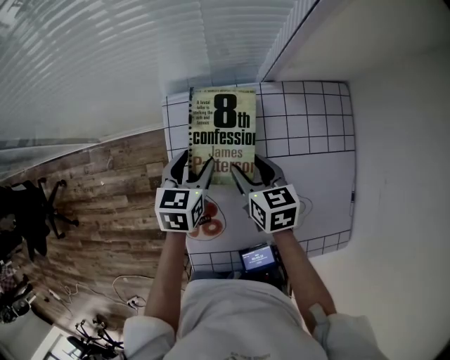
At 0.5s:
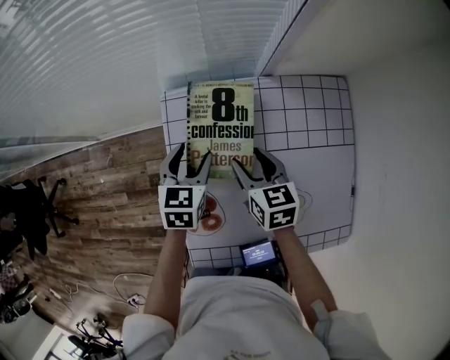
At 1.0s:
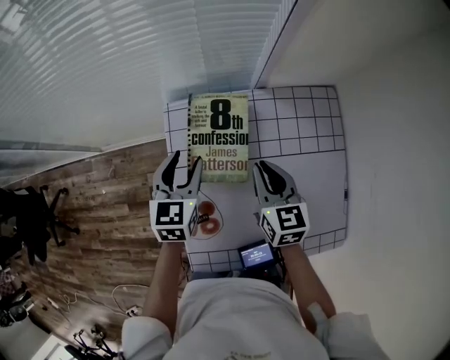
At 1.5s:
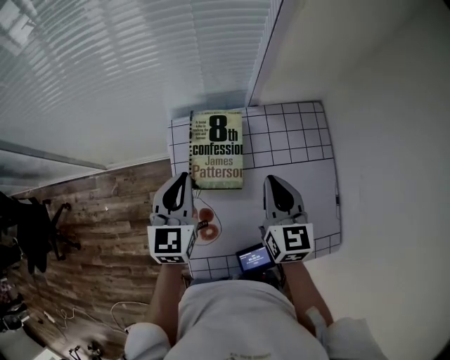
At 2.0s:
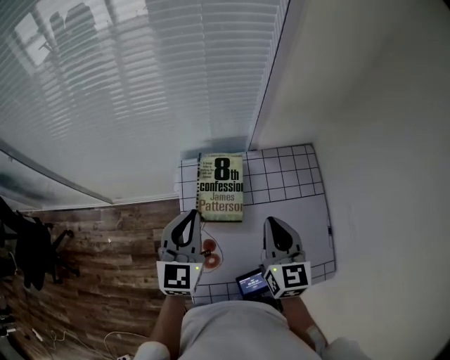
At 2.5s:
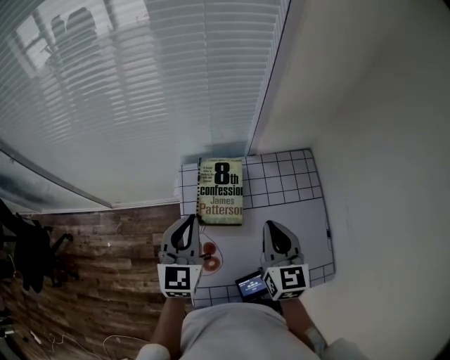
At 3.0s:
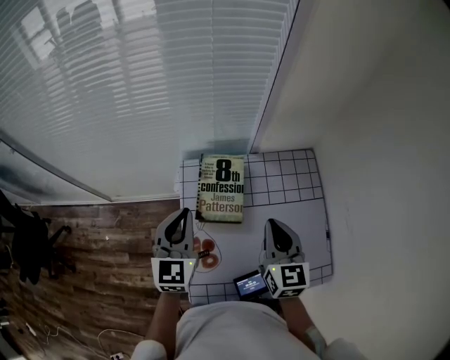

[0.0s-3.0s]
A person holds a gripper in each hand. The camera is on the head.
0.0s to 1.5s: The left gripper travels upward by about 15 cm, rotates about 30 degrees, and closes, while the right gripper shifts approximately 15 cm upward and to the right, swivels some 30 degrees, and closes up.
1.5s to 3.0s: Both grippers move upward, some 5 cm.

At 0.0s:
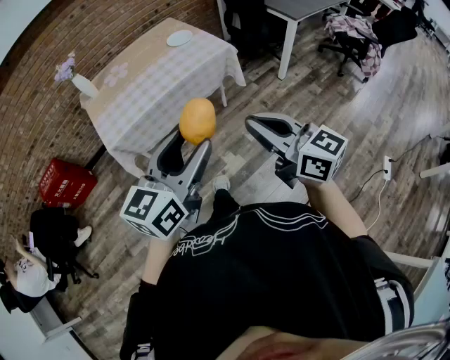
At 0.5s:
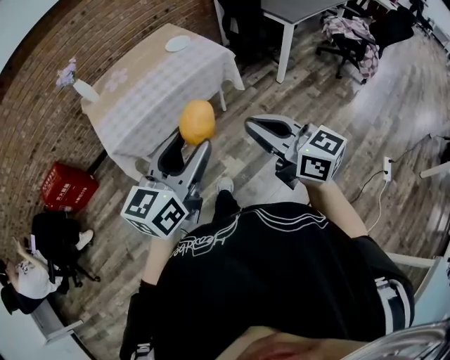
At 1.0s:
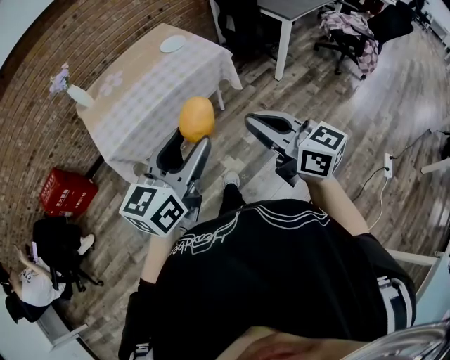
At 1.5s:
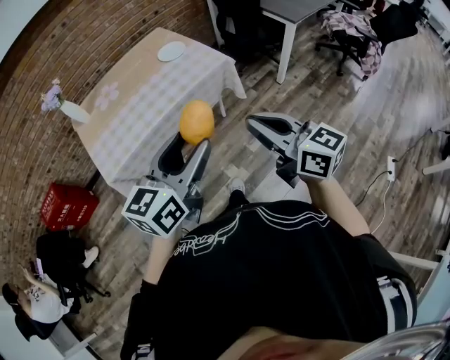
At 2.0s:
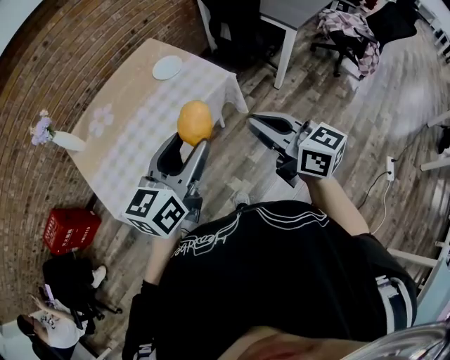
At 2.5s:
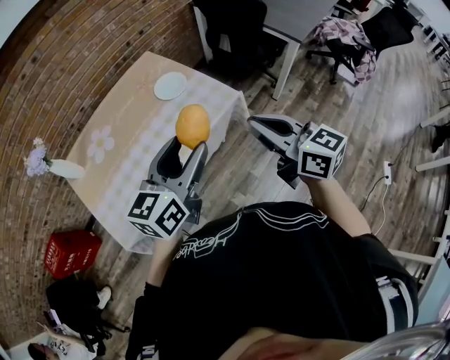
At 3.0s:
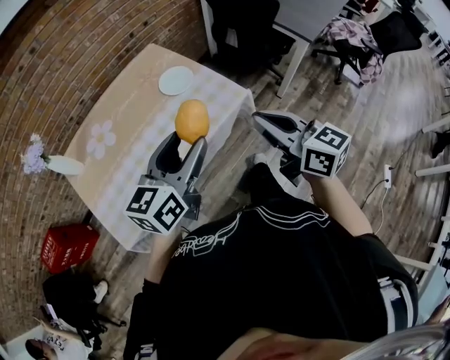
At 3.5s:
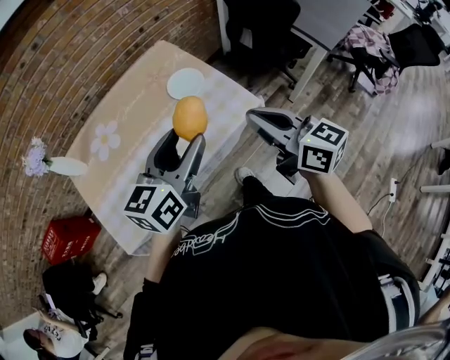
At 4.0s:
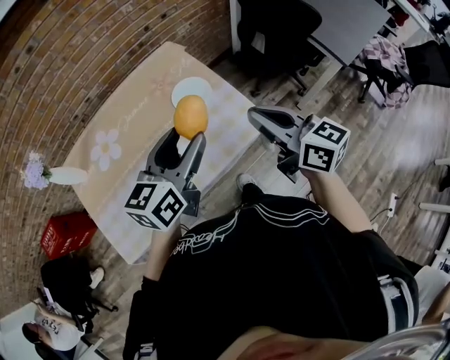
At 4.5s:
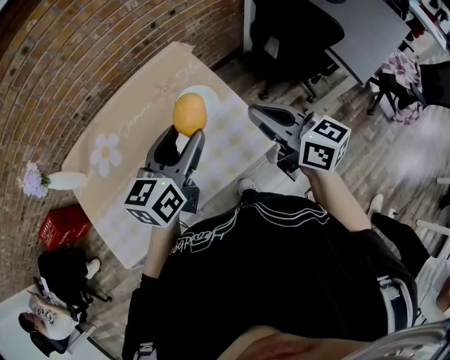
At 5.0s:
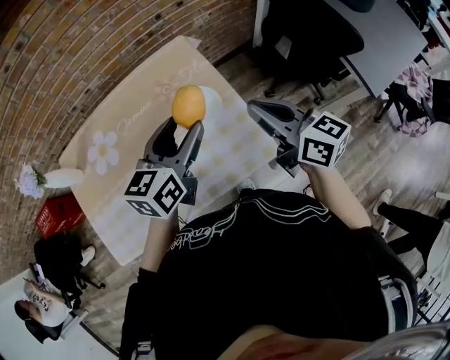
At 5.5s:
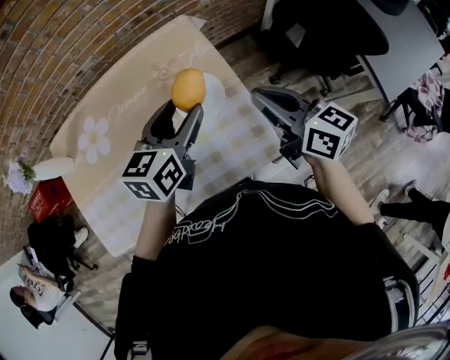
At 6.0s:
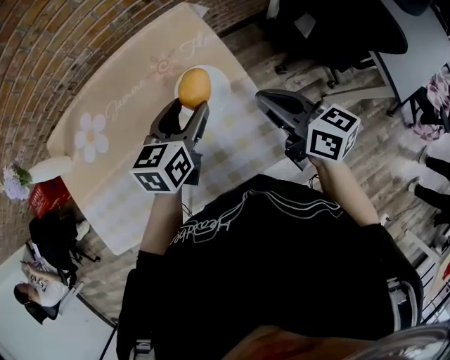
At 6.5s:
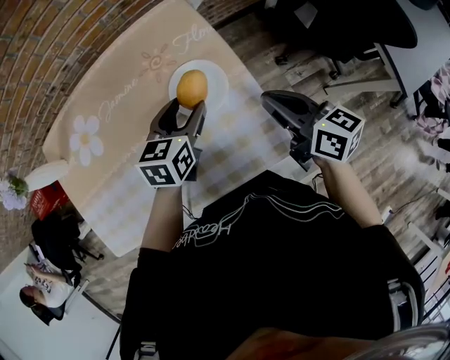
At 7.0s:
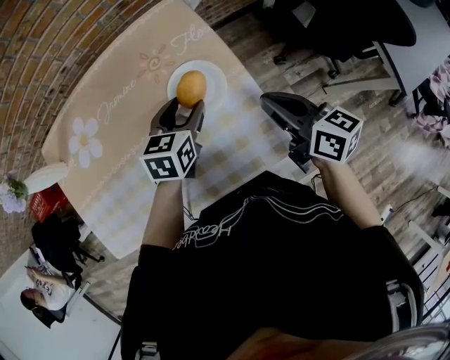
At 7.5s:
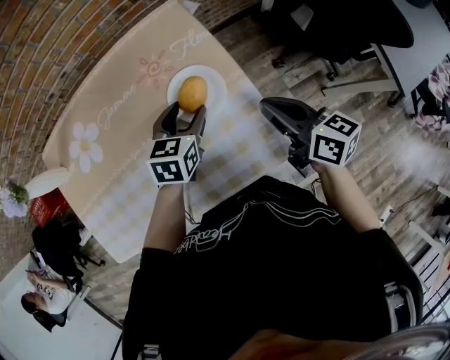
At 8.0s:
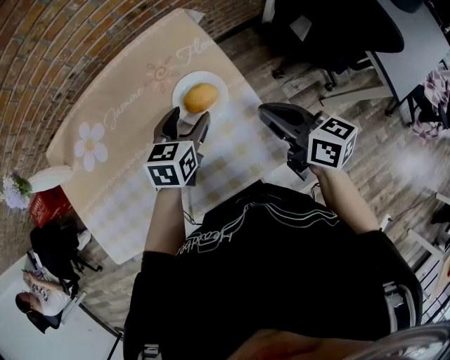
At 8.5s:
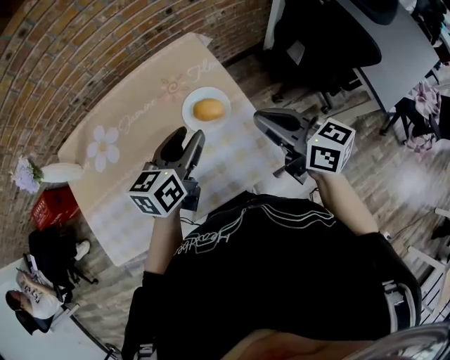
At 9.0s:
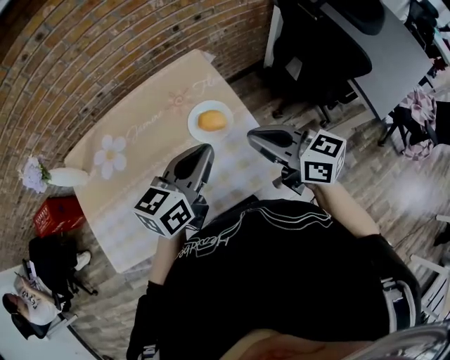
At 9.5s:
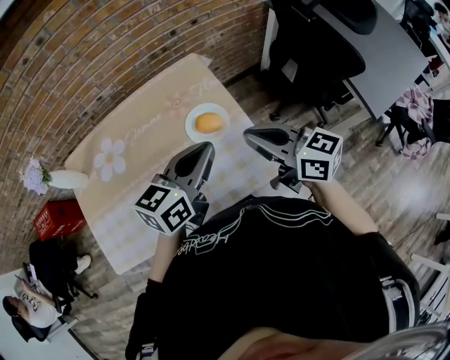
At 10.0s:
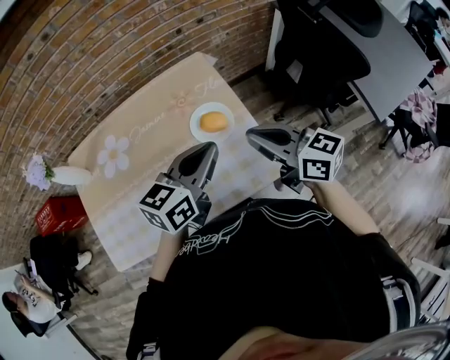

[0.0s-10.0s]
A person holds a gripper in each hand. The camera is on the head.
0.0s to 2.0s: The two grippers go some 25 cm forward.
2.0s to 4.0s: Both grippers travel together forward, roughly 30 cm.
4.0s to 6.0s: The two grippers go approximately 25 cm forward and downward. The left gripper changes its angle by about 20 degrees.
6.0s to 8.0s: The left gripper shifts roughly 5 cm downward.
8.0s to 10.0s: The left gripper is displaced upward and backward by approximately 20 cm, changes its angle by roughly 30 degrees, and closes up, while the right gripper travels upward by some 10 cm.

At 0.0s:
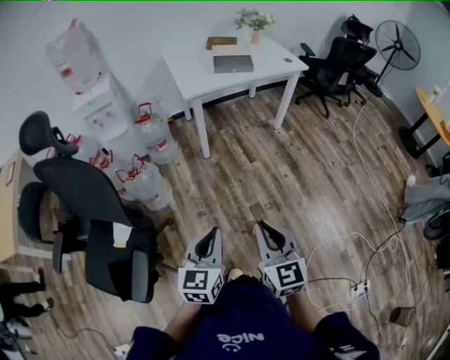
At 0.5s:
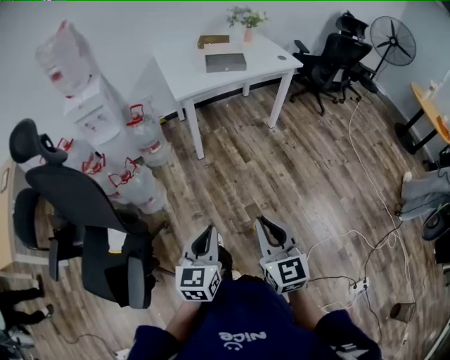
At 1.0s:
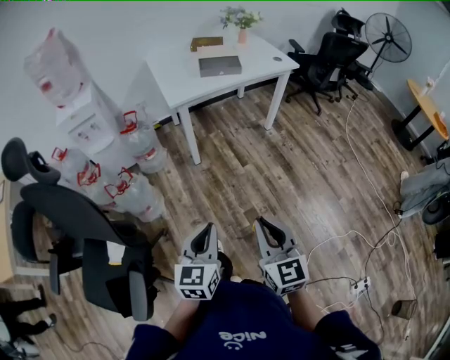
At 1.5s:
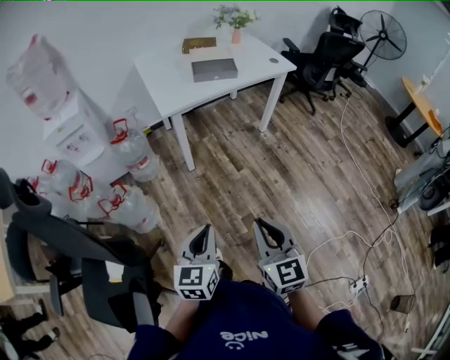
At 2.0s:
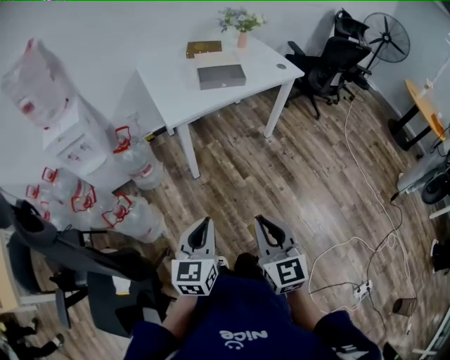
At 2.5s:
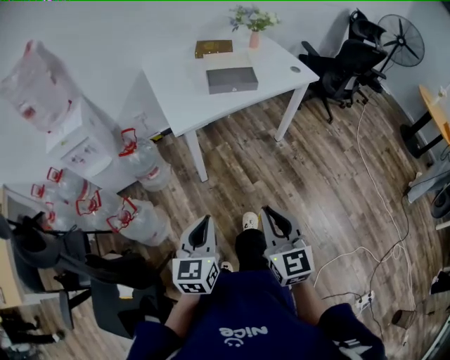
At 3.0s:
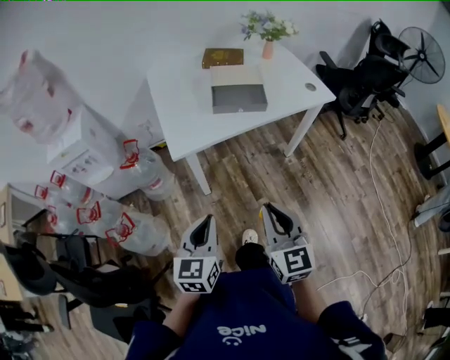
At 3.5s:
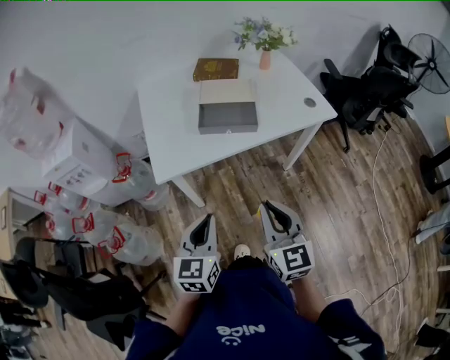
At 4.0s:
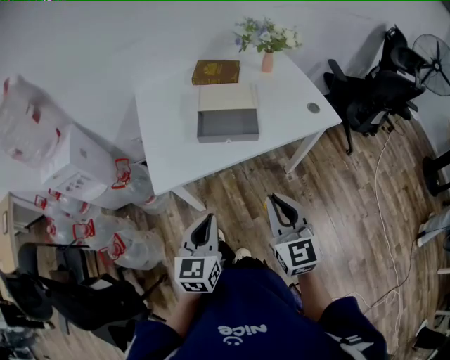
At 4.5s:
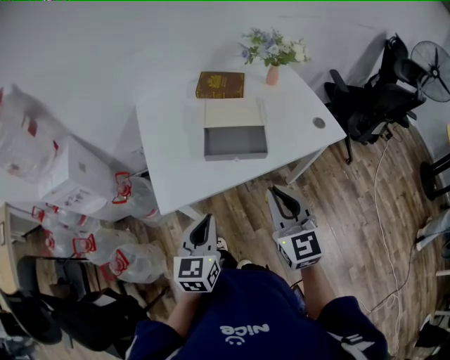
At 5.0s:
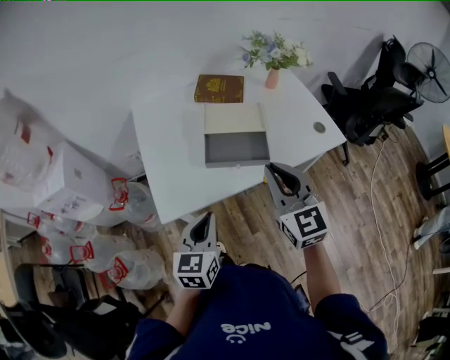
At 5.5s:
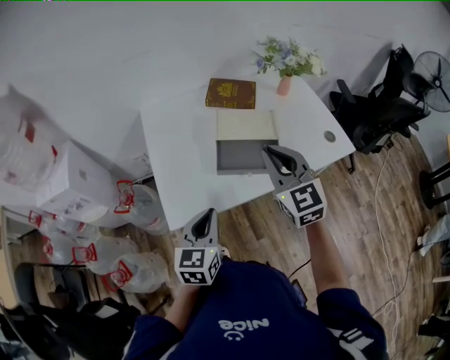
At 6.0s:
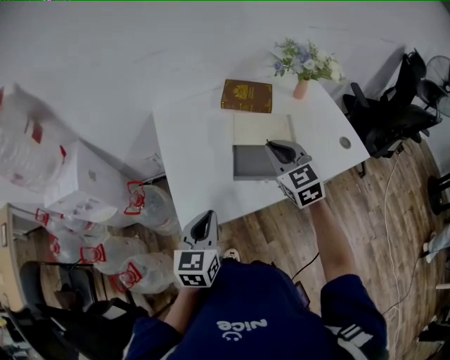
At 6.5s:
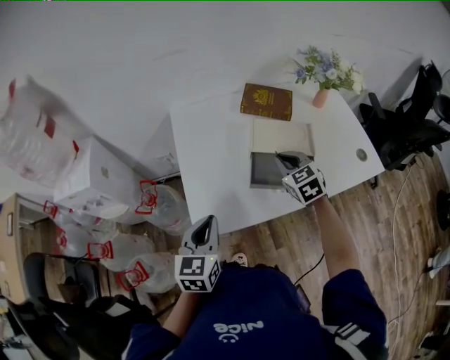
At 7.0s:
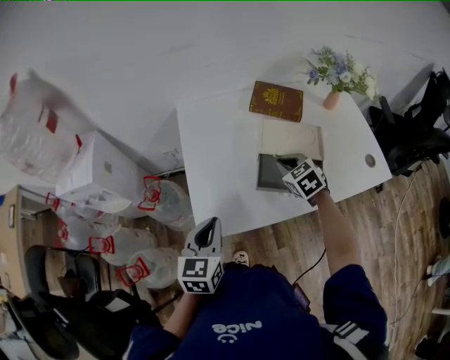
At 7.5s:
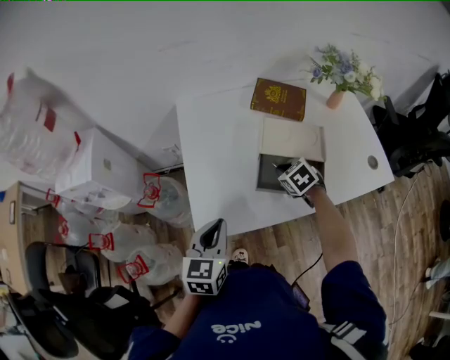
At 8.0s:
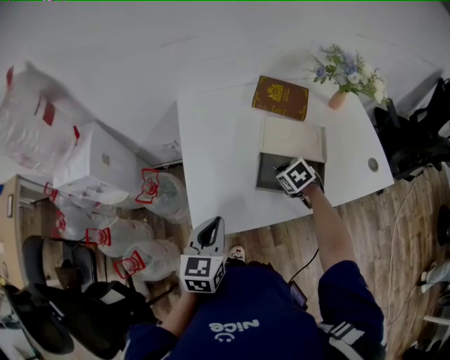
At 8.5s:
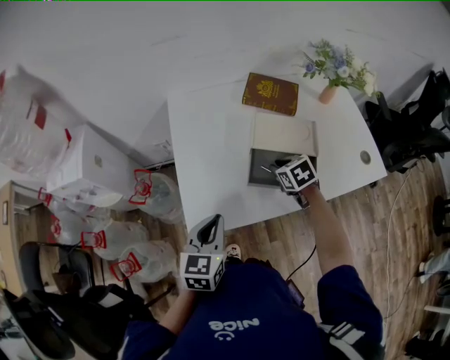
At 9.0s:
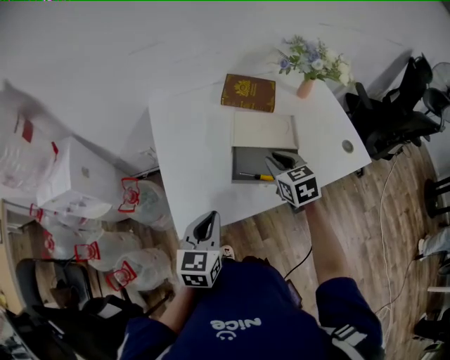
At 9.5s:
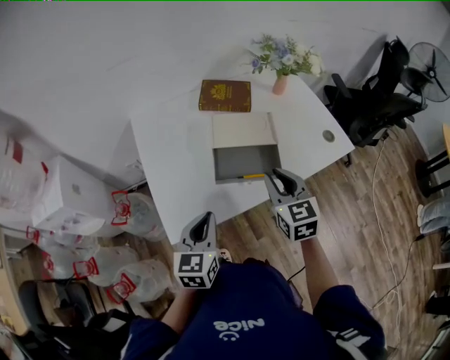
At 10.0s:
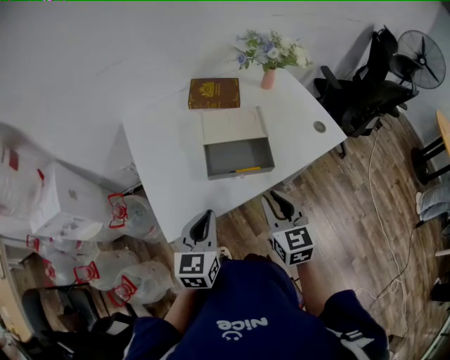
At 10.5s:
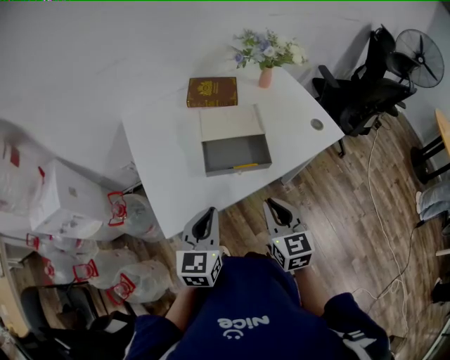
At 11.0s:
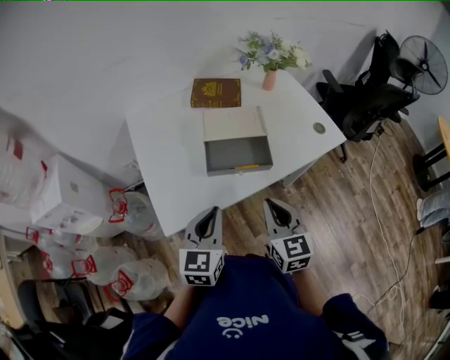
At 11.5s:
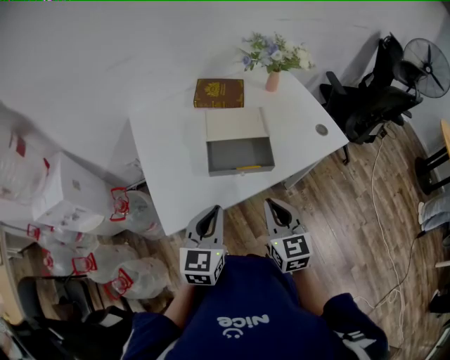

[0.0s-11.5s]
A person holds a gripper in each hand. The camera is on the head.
0.0s to 2.0s: Both grippers move forward, about 25 cm.
2.0s to 4.0s: Both grippers travel together forward, some 40 cm.
4.0s to 6.0s: The left gripper shifts approximately 20 cm forward and to the left; the right gripper travels forward by approximately 30 cm.
6.0s to 7.5s: The right gripper heads downward, covering roughly 20 cm, and angles its fingers downward, by about 40 degrees.
7.5s to 9.5s: The left gripper moves to the right, some 5 cm. The right gripper moves upward and backward, about 20 cm, and angles its fingers upward, by about 30 degrees.
9.5s to 11.5s: The right gripper shifts about 10 cm backward, while the left gripper moves roughly 5 cm.

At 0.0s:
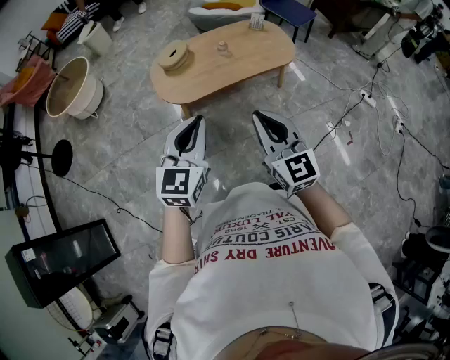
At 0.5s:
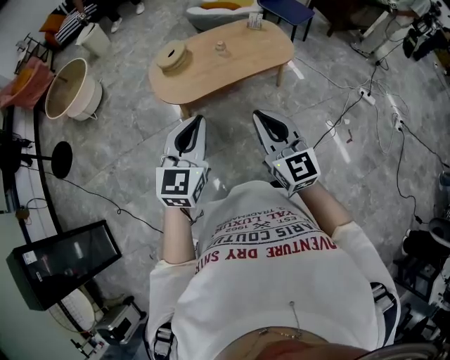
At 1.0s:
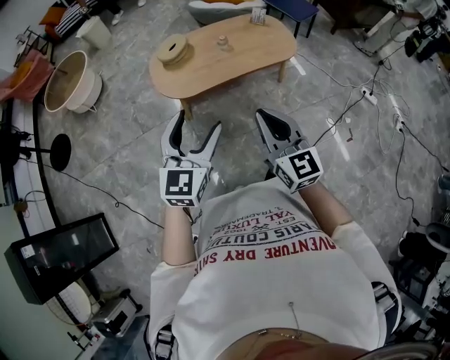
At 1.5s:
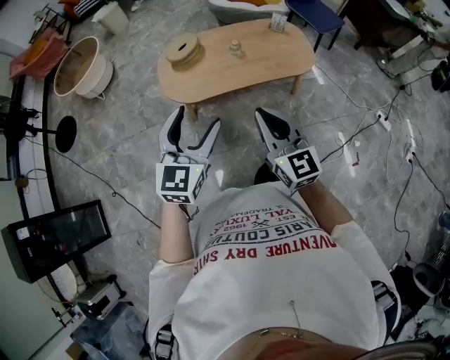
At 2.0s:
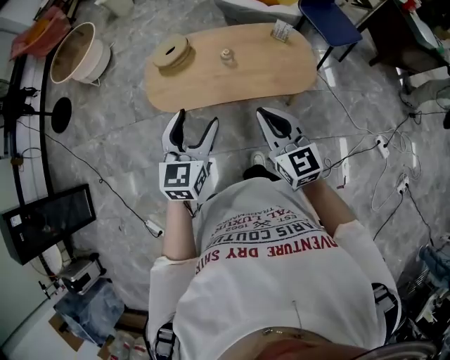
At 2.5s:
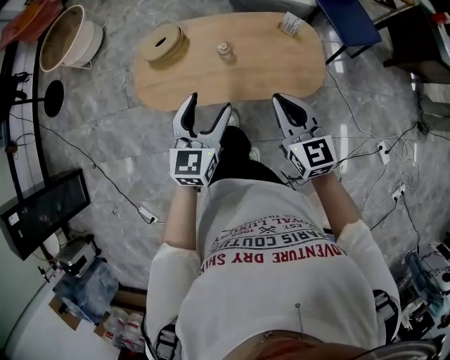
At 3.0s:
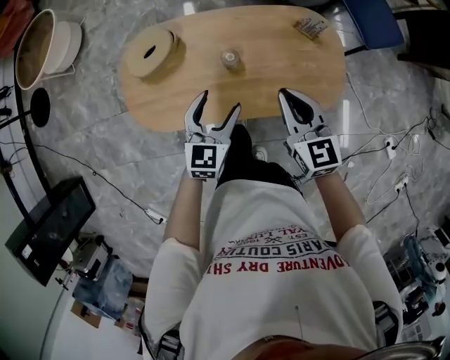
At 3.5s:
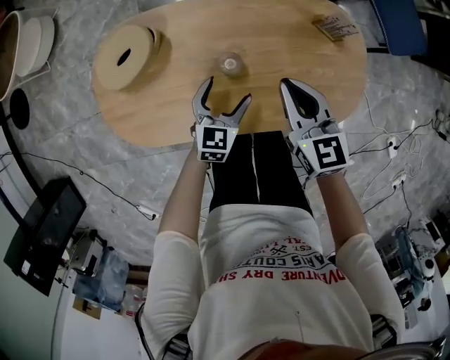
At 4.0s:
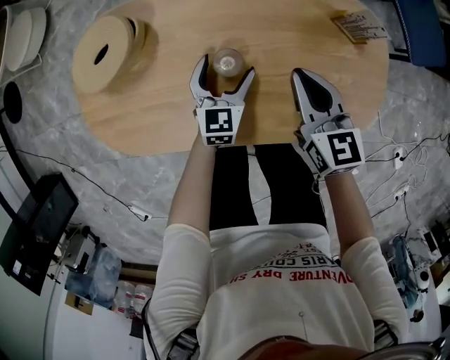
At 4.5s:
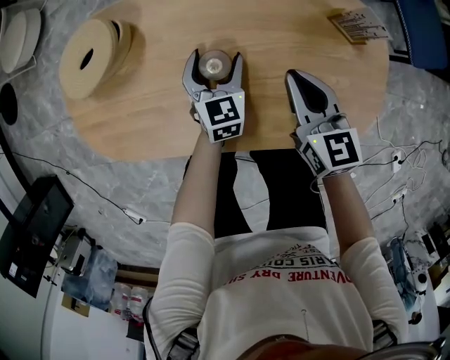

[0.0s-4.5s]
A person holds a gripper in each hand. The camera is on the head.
0.0s to 2.0s: The grippers both shift forward and to the right by roughly 30 cm. The right gripper changes its angle by about 20 degrees, while the left gripper changes its angle by roughly 20 degrees, and opens up.
2.0s to 4.5s: The pair of grippers is taken forward, some 40 cm. The grippers both shift downward by about 50 cm. The right gripper turns by roughly 20 degrees; the left gripper turns by about 20 degrees.
